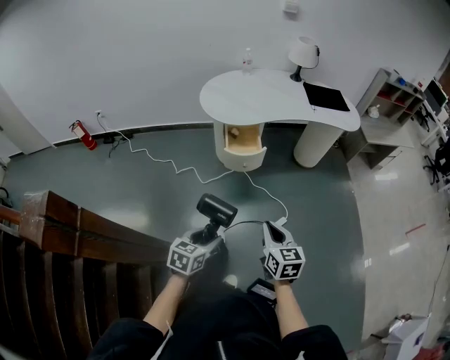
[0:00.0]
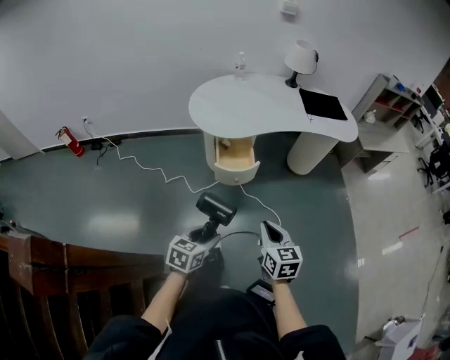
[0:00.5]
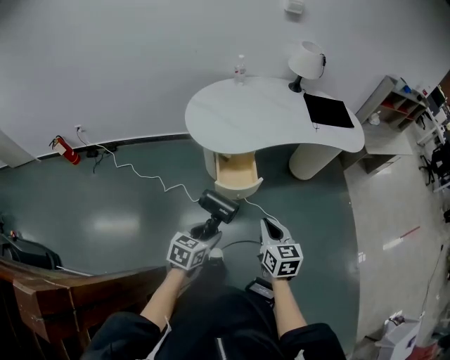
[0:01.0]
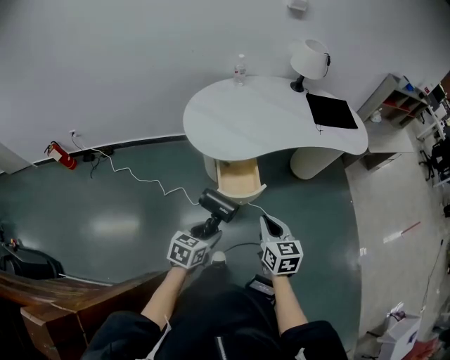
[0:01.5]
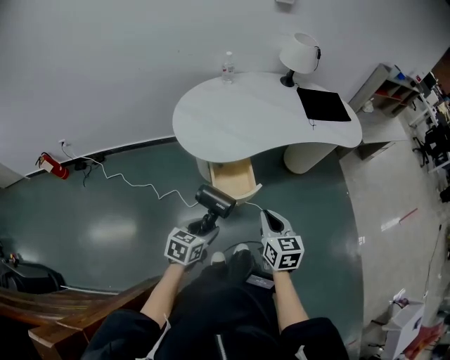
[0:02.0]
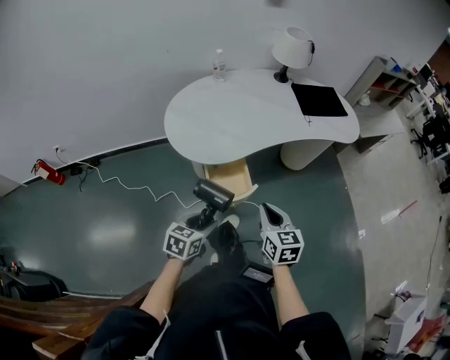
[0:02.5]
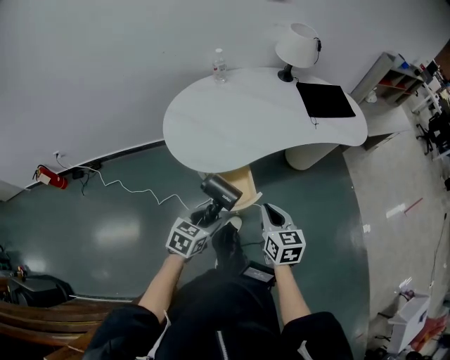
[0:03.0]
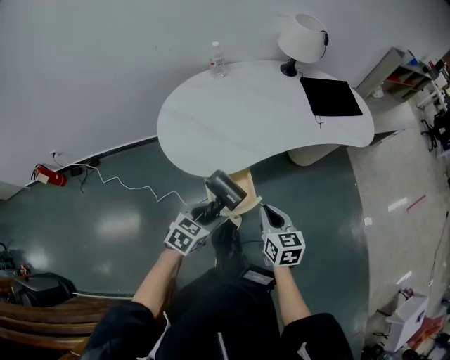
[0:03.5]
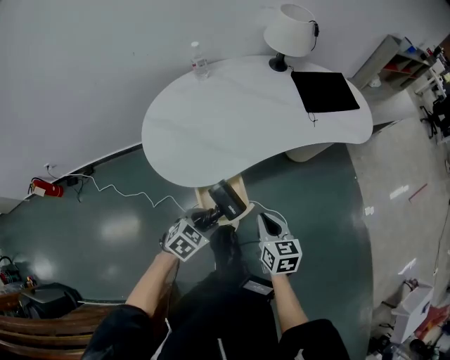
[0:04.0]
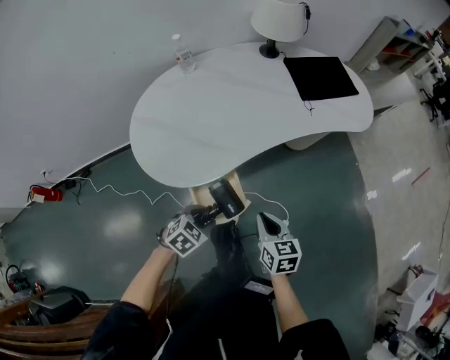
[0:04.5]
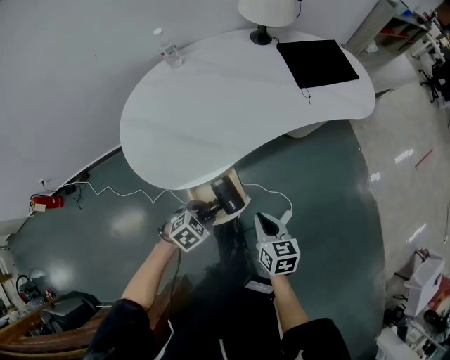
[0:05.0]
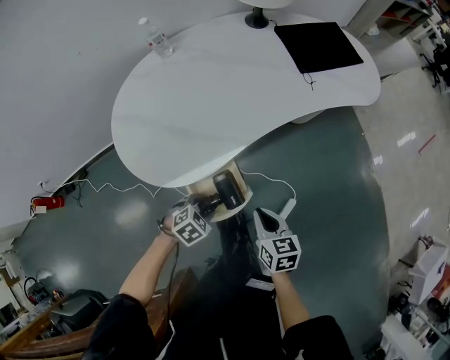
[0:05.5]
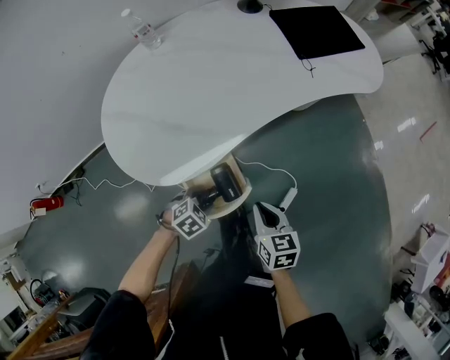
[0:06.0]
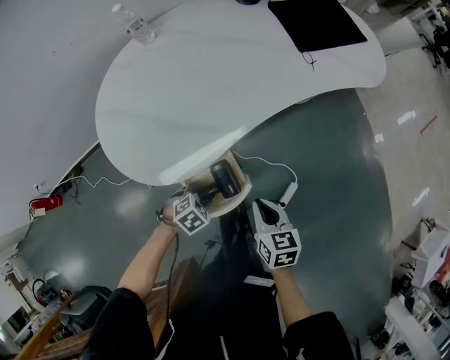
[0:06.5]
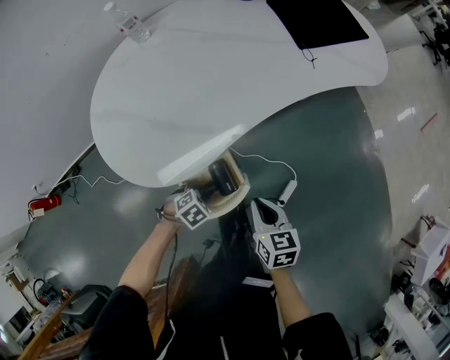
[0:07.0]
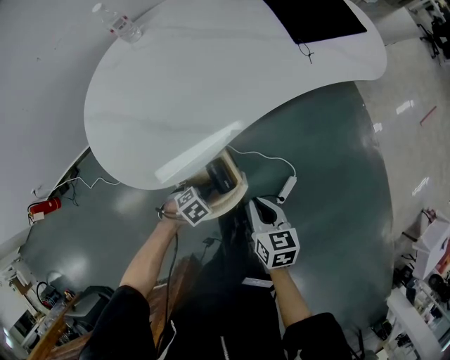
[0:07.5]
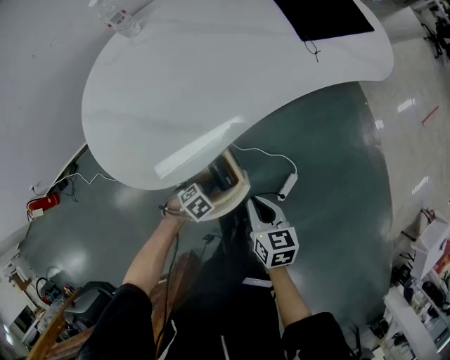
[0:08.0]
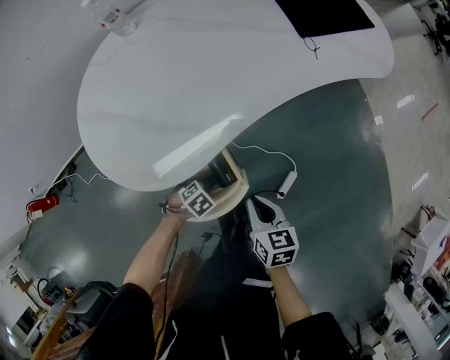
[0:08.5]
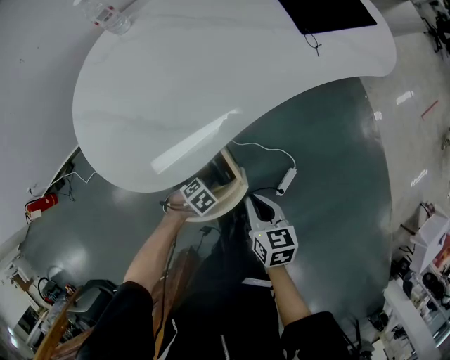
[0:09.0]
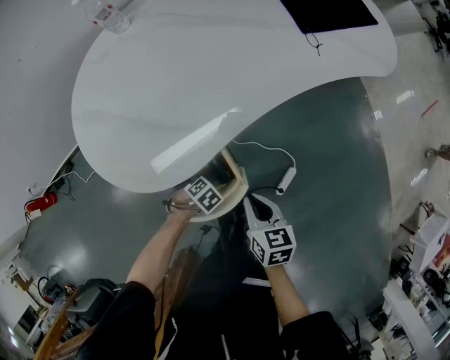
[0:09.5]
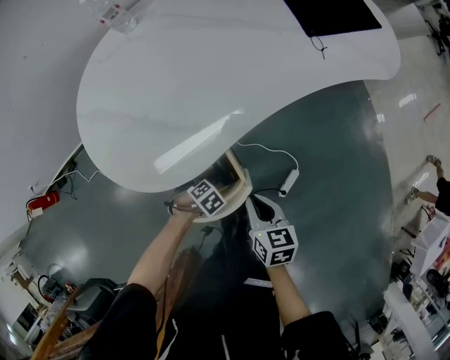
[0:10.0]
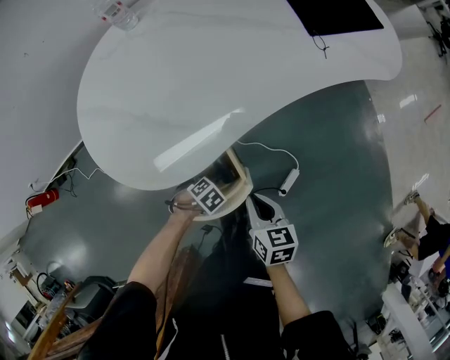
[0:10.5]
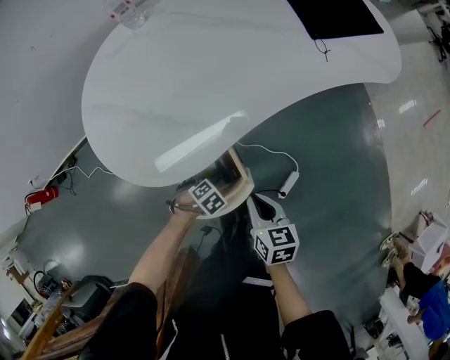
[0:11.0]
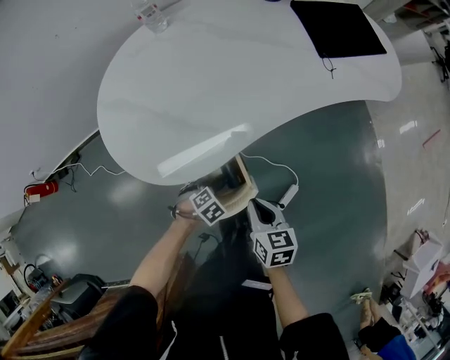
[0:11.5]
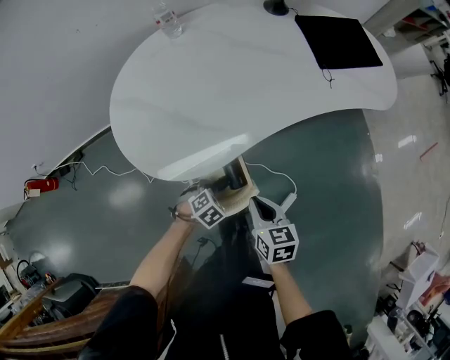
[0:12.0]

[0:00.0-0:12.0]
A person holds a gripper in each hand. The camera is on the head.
0:00.0 to 0:02.0: The two grippers go approximately 30 cm forward.
0:02.0 to 0:04.0: The left gripper goes approximately 20 cm forward, and turns by approximately 30 degrees. Meanwhile the right gripper heads forward and downward, covering approximately 15 cm.
0:04.0 to 0:06.0: The left gripper goes about 15 cm downward, and changes its angle by about 30 degrees, while the right gripper travels downward by roughly 10 cm.
0:06.0 to 0:08.0: The left gripper heads downward, covering some 10 cm.
0:08.0 to 0:10.0: The grippers stay close to where they were, moving slightly.
0:10.0 to 0:12.0: The left gripper heads upward, covering approximately 10 cm, swivels approximately 20 degrees, and closes up.

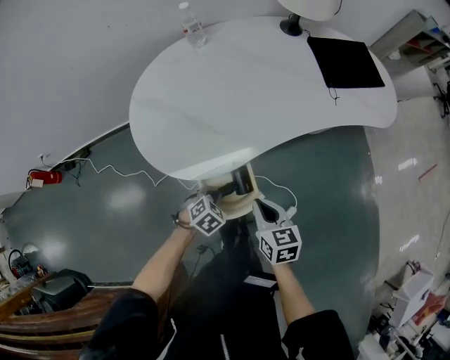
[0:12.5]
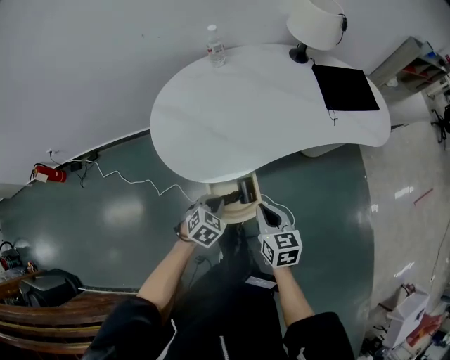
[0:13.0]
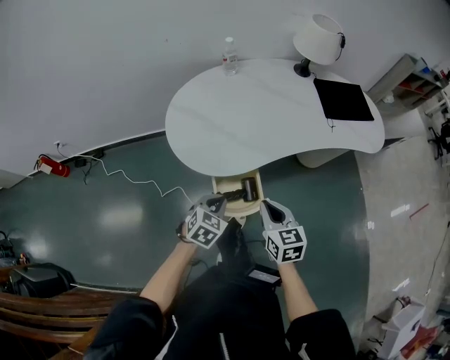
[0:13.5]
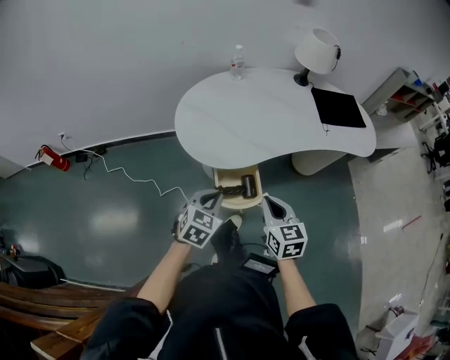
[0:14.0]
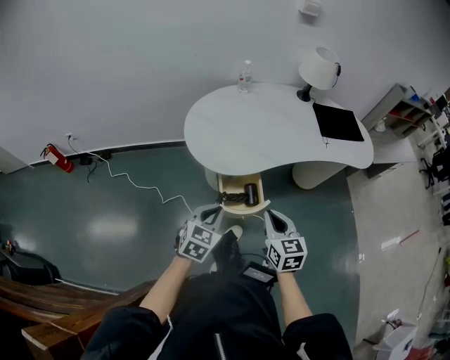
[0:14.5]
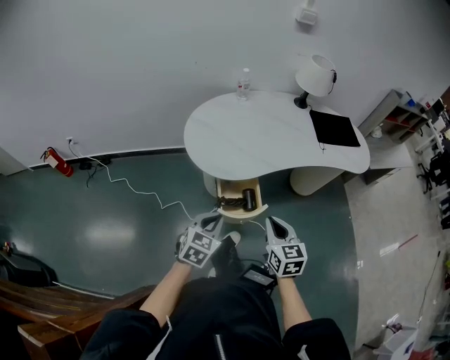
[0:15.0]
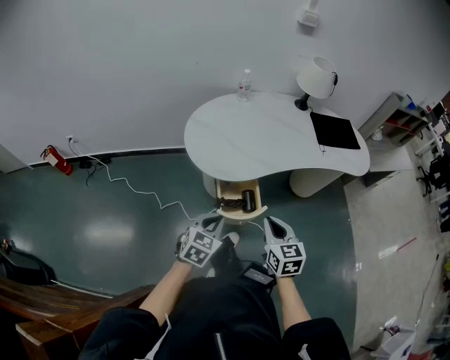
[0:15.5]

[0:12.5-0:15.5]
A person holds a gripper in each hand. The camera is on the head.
0:12.5 to 0:14.0: The left gripper shifts about 25 cm upward, and rotates approximately 40 degrees, while the right gripper is displaced upward and backward by about 15 cm.
0:14.0 to 0:15.5: Both grippers travel together backward, some 5 cm.

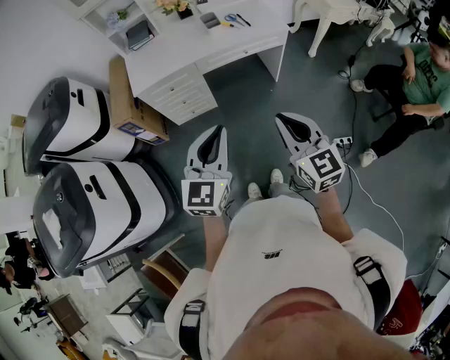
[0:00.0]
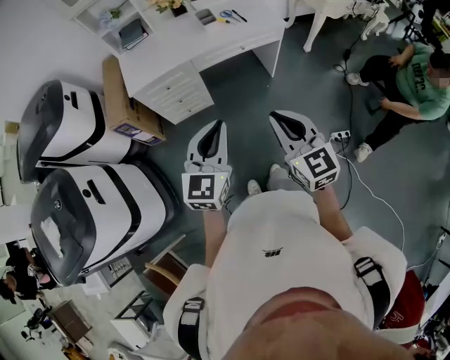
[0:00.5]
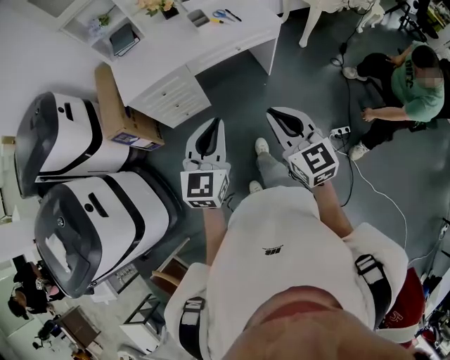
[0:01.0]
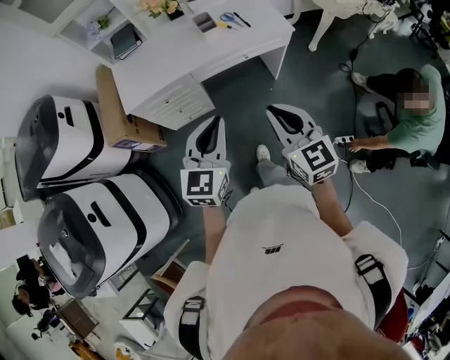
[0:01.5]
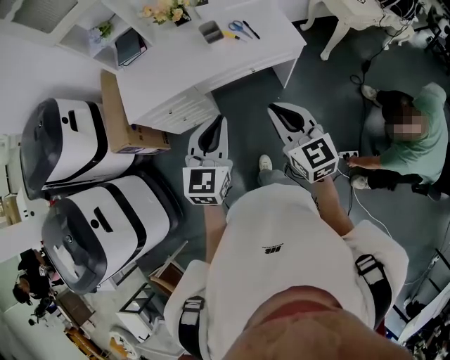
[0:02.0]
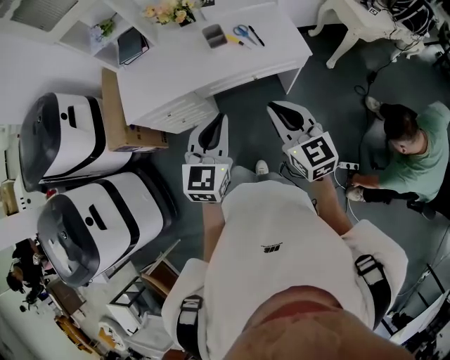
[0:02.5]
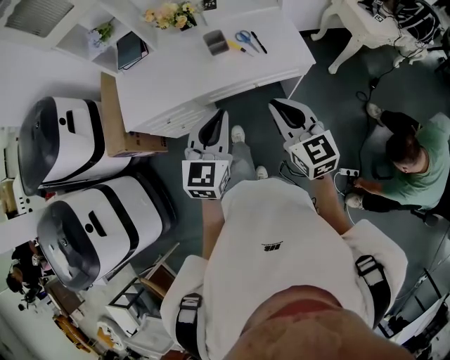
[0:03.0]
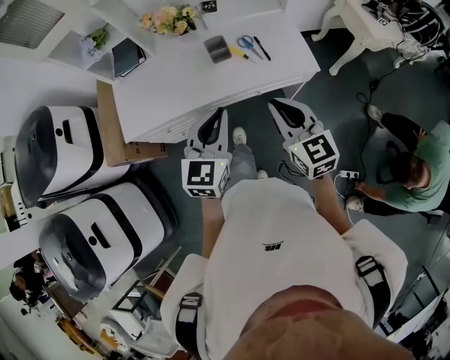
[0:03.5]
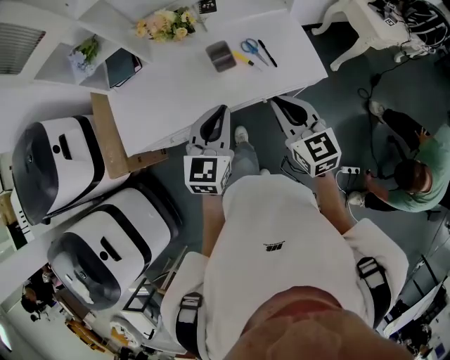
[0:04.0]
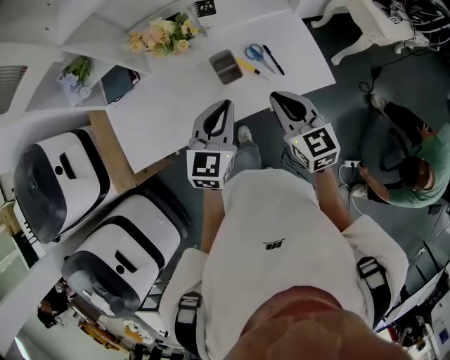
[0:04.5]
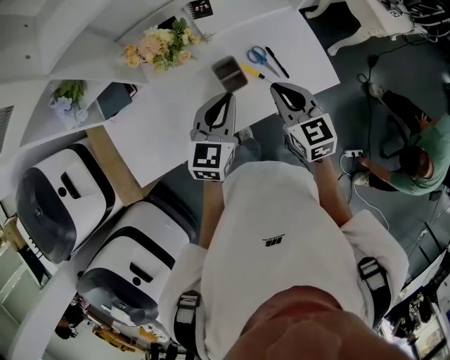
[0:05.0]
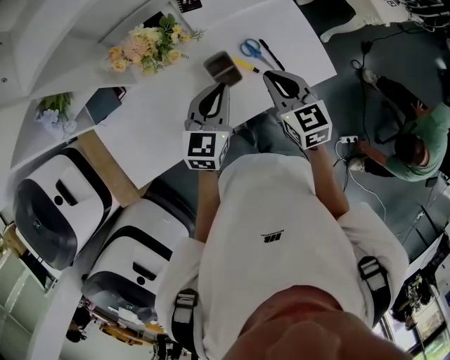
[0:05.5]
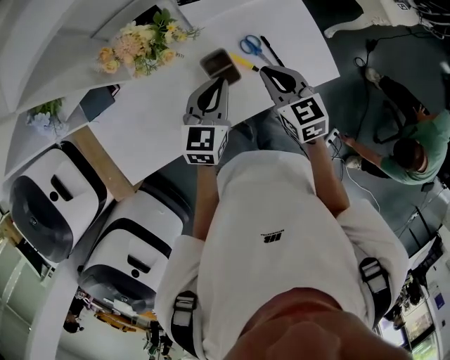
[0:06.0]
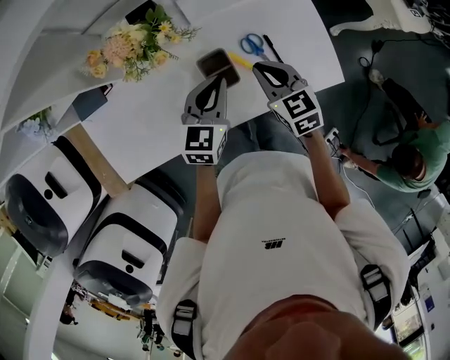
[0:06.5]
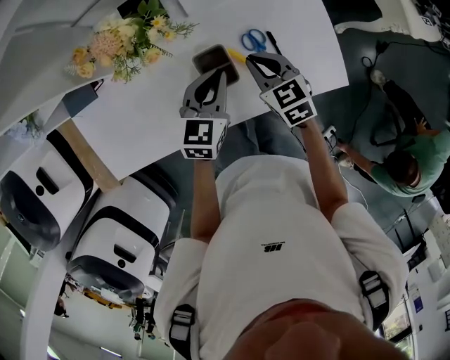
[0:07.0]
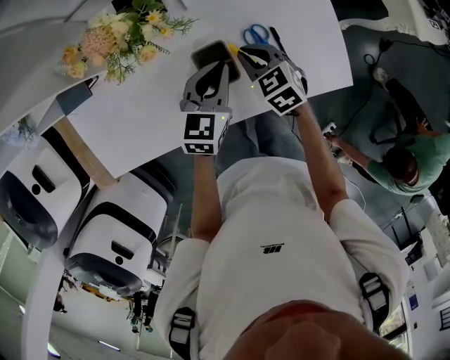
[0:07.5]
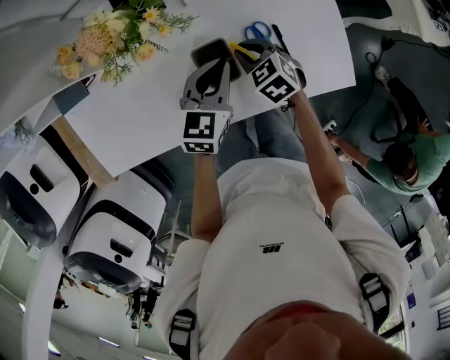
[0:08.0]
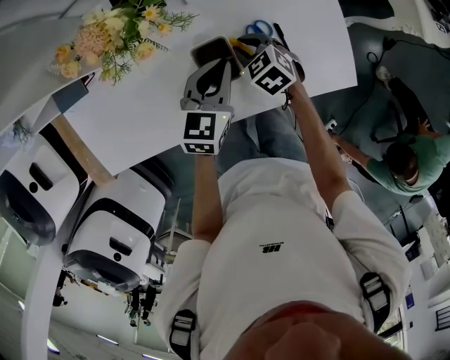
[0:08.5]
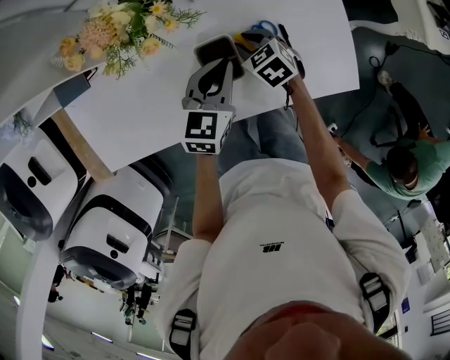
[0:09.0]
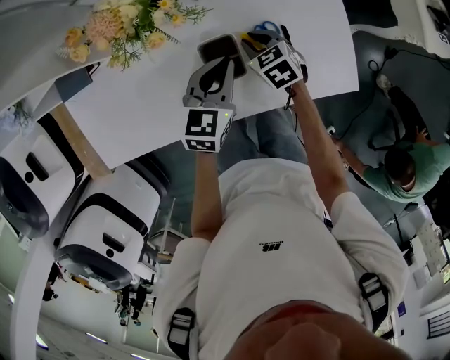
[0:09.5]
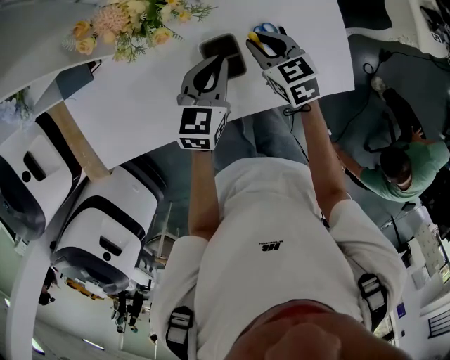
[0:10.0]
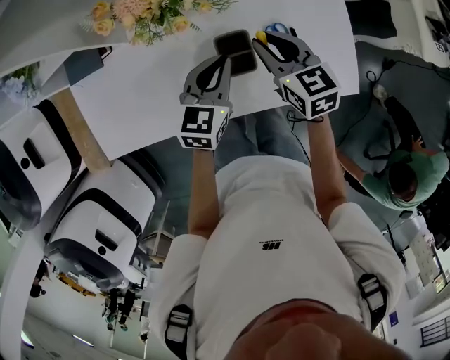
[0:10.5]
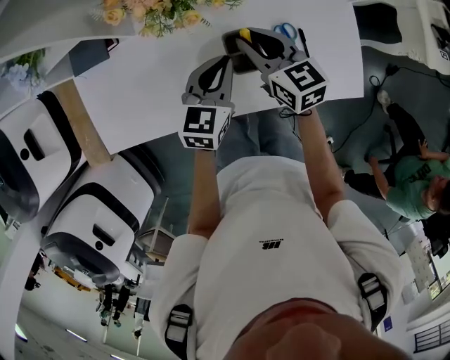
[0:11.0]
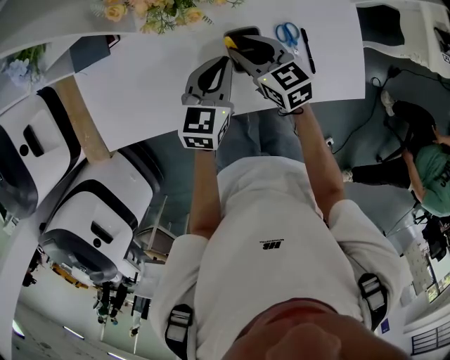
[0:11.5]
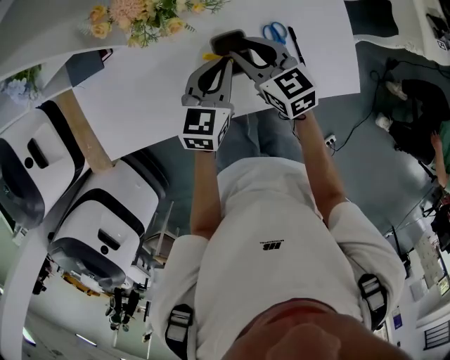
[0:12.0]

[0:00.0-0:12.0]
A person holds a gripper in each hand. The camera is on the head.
0:00.0 to 0:02.0: The two grippers go about 30 cm forward.
0:02.0 to 0:04.0: Both grippers move forward, roughly 25 cm.
0:04.0 to 0:06.0: Both grippers travel together forward and downward, about 25 cm.
0:06.0 to 0:08.0: The right gripper moves downward, roughly 20 cm, and rotates some 30 degrees; the left gripper is displaced downward by some 10 cm.
0:08.0 to 0:10.0: The right gripper moves upward, about 5 cm.
0:10.0 to 0:12.0: The right gripper travels to the left by some 5 cm.
